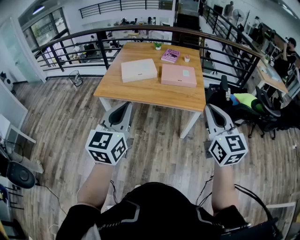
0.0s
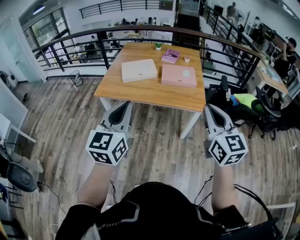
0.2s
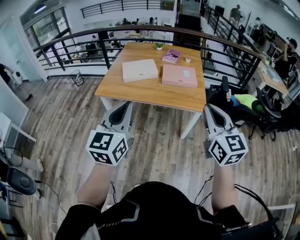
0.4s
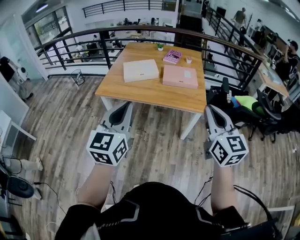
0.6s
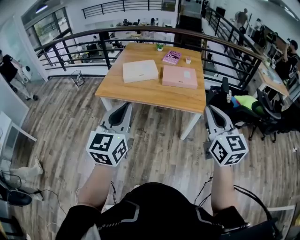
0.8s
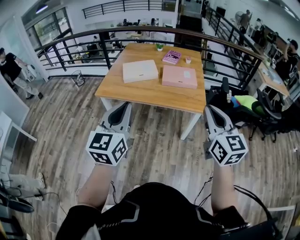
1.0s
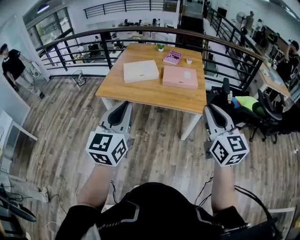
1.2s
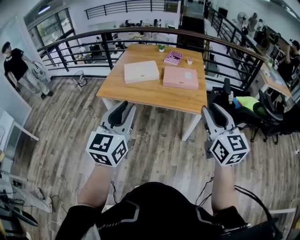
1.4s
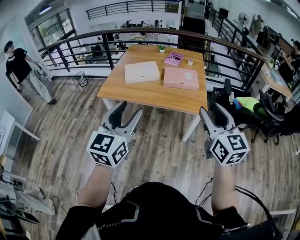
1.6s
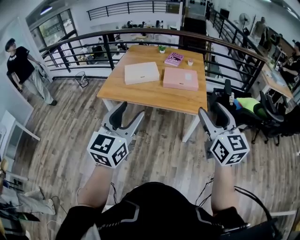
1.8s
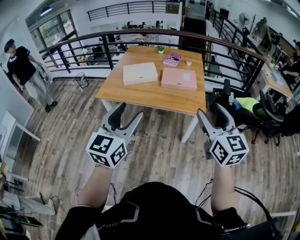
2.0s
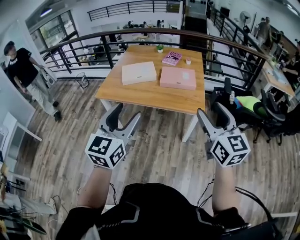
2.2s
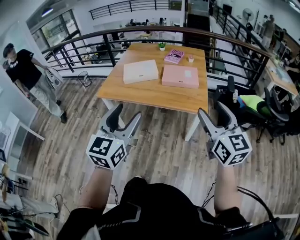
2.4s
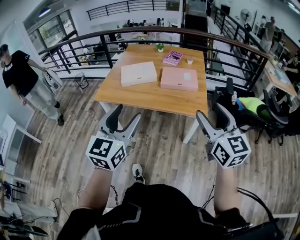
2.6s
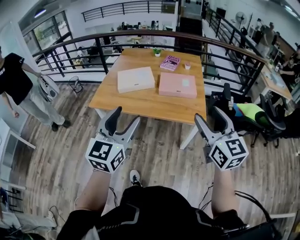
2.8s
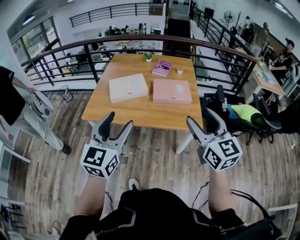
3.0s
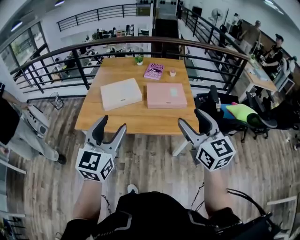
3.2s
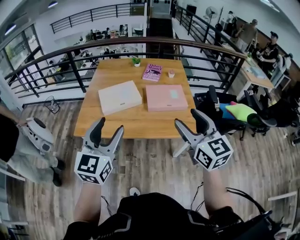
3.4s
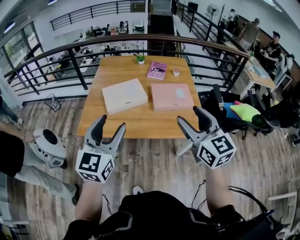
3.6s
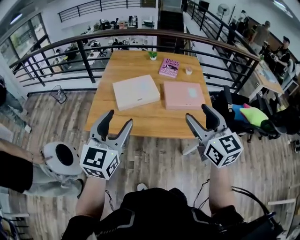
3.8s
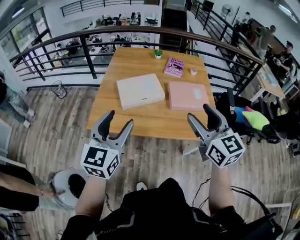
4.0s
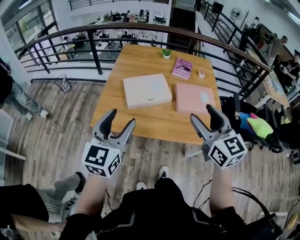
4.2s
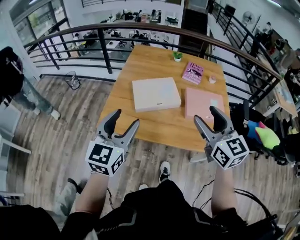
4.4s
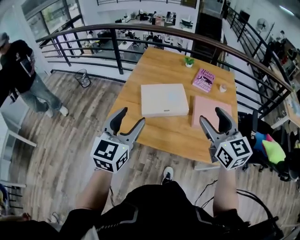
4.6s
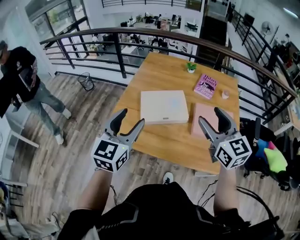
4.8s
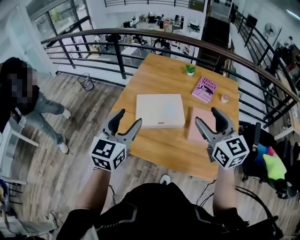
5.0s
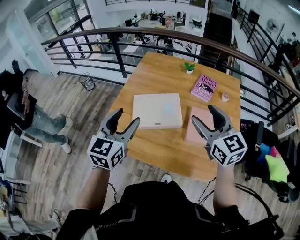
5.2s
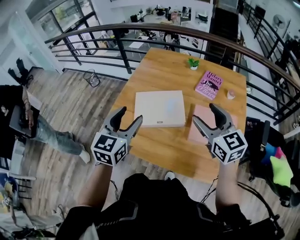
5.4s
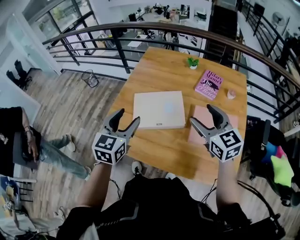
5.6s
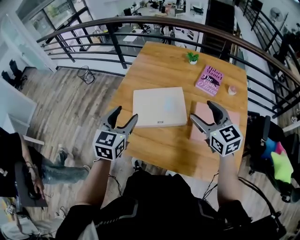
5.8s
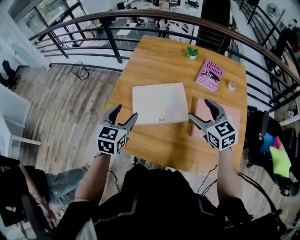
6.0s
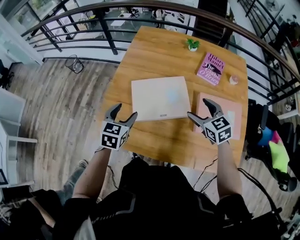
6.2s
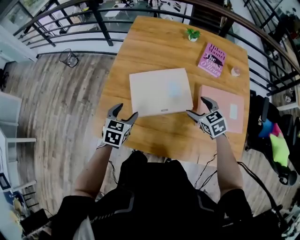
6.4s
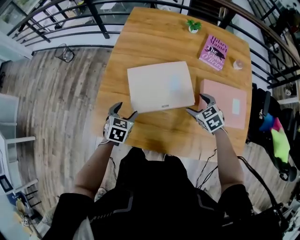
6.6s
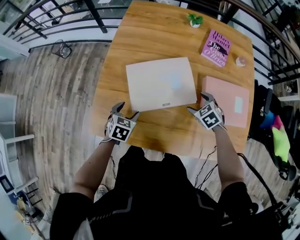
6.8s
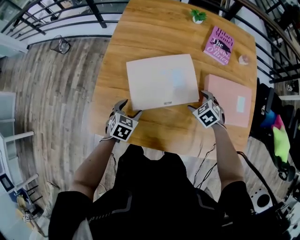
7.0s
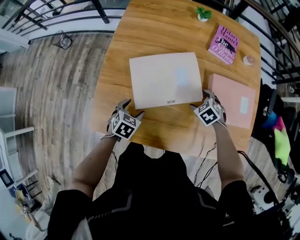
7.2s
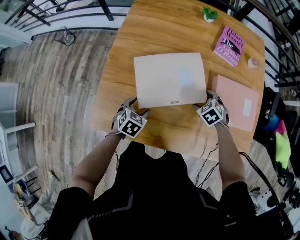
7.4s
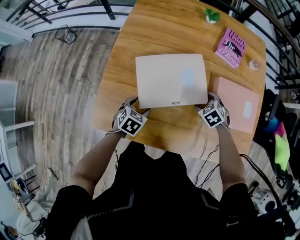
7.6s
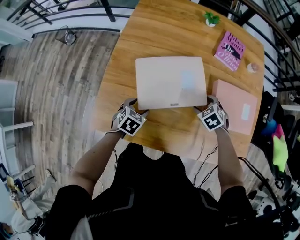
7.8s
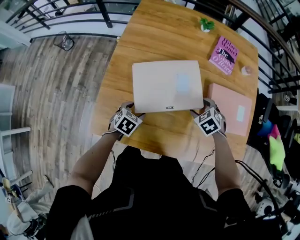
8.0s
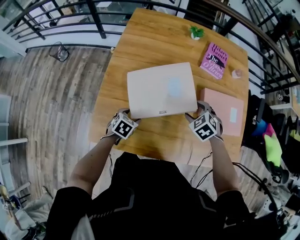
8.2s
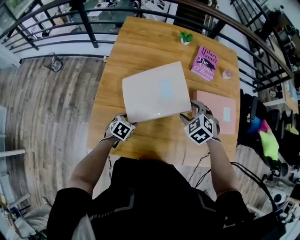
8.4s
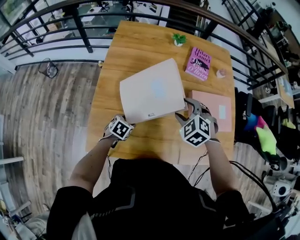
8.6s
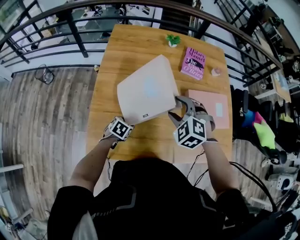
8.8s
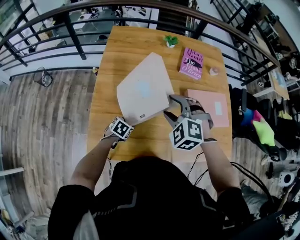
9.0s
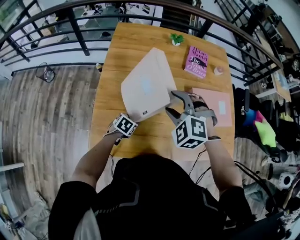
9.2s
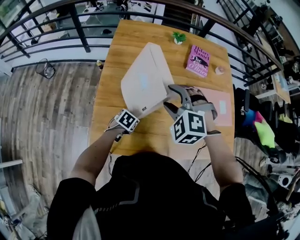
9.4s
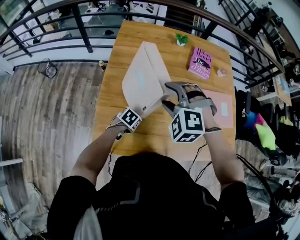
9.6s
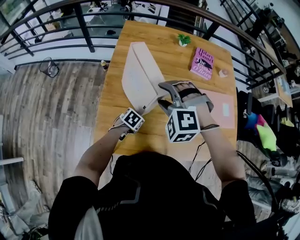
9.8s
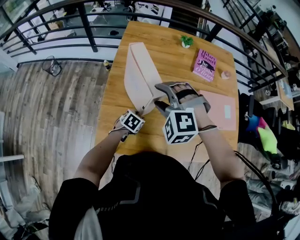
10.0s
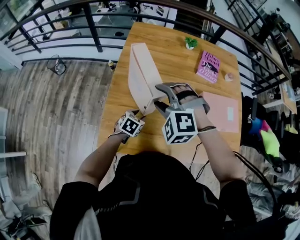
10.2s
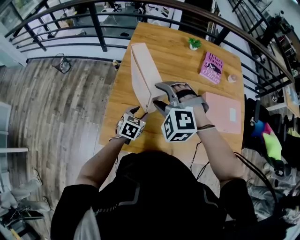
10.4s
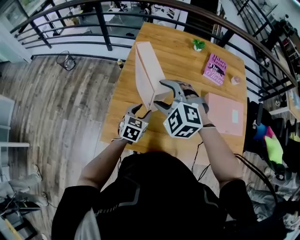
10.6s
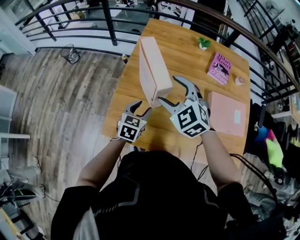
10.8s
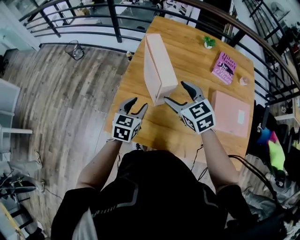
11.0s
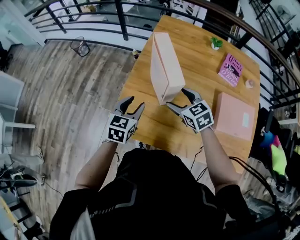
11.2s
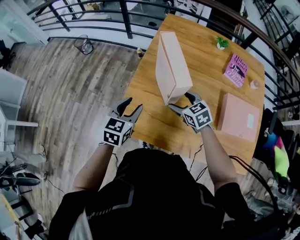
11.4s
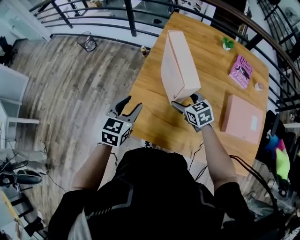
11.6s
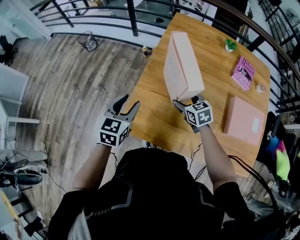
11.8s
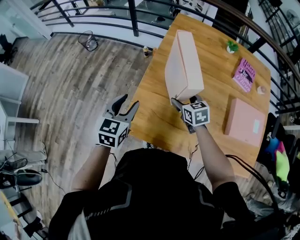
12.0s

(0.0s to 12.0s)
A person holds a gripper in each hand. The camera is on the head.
0.0s - 1.6s: The right gripper opens. Meanwhile the left gripper opens its fingers.
1.6s - 3.0s: The two grippers go about 15 cm forward.
3.0s - 4.4s: The left gripper heads to the left and forward, covering approximately 25 cm; the right gripper heads forward and to the left, covering approximately 30 cm.
4.4s - 6.0s: Both grippers move forward and downward, approximately 30 cm. The right gripper turns by about 20 degrees. The left gripper turns by approximately 20 degrees.
6.0s - 7.6s: The two grippers go approximately 25 cm downward. The left gripper angles its fingers downward, by some 30 degrees. Meanwhile the right gripper tips its fingers downward by some 50 degrees.
7.6s - 9.0s: The right gripper goes approximately 25 cm upward and to the left, and changes its angle by roughly 40 degrees.
9.0s - 10.4s: The left gripper moves upward, approximately 10 cm, and changes its angle by approximately 30 degrees. Meanwhile the right gripper moves about 15 cm, and changes its angle by approximately 20 degrees.
10.4s - 12.0s: The right gripper heads downward, covering approximately 15 cm, and rolls clockwise, seen from behind, by some 70 degrees, while the left gripper travels to the left and upward by about 20 cm, and changes its angle by approximately 20 degrees.

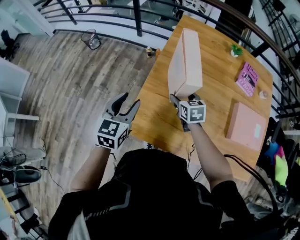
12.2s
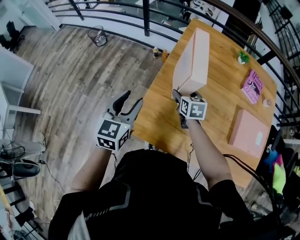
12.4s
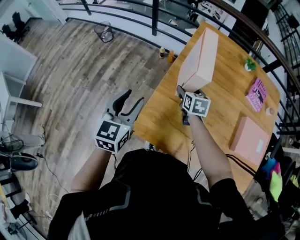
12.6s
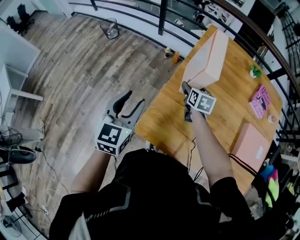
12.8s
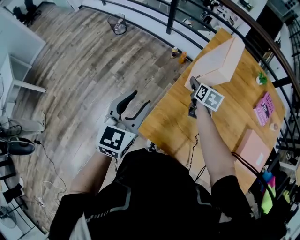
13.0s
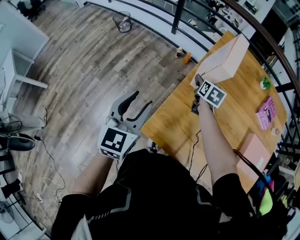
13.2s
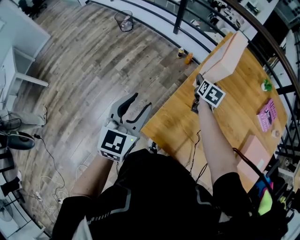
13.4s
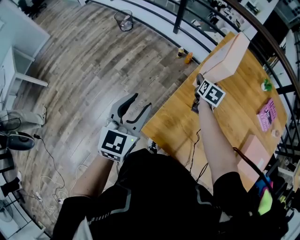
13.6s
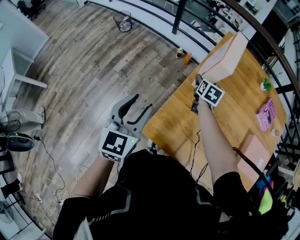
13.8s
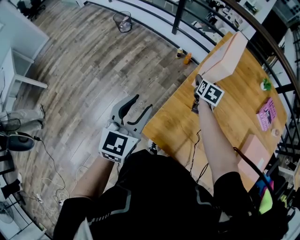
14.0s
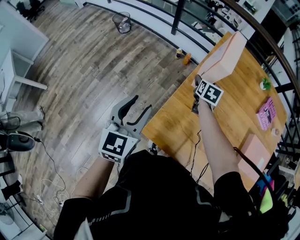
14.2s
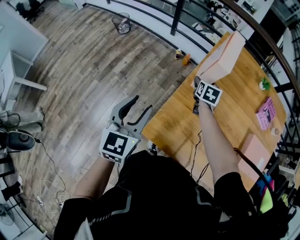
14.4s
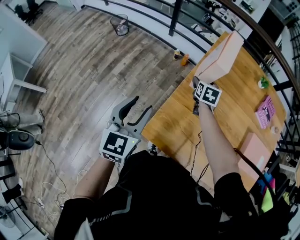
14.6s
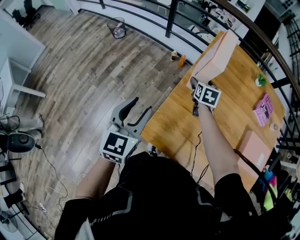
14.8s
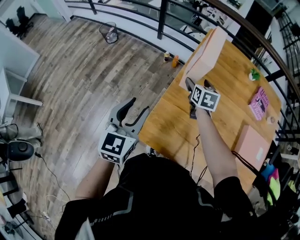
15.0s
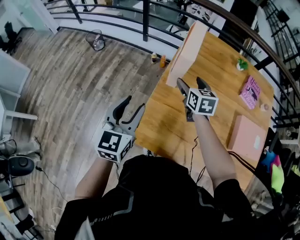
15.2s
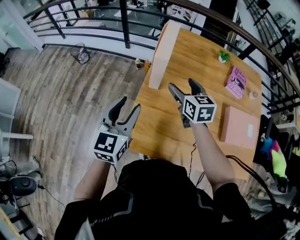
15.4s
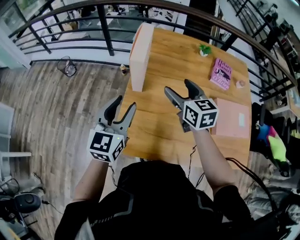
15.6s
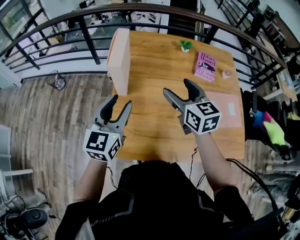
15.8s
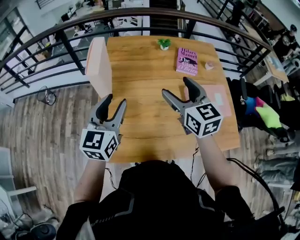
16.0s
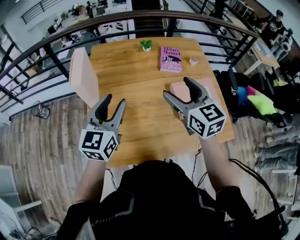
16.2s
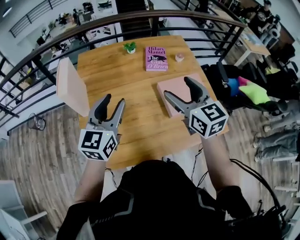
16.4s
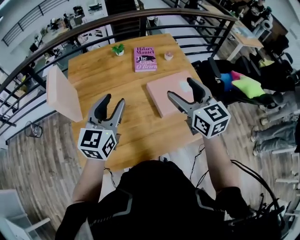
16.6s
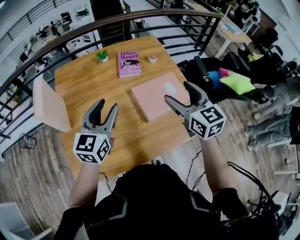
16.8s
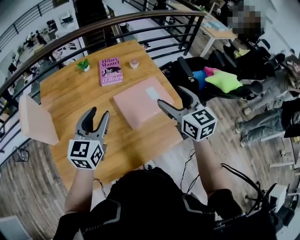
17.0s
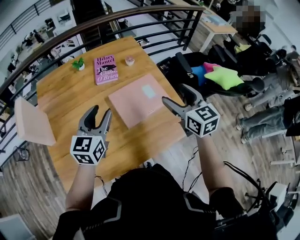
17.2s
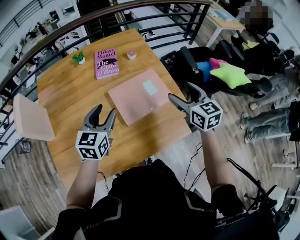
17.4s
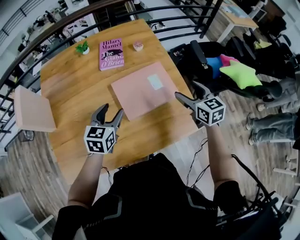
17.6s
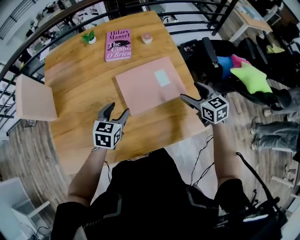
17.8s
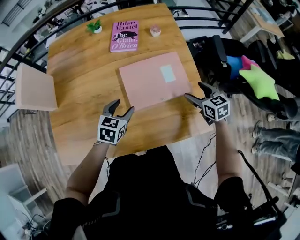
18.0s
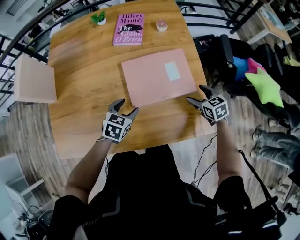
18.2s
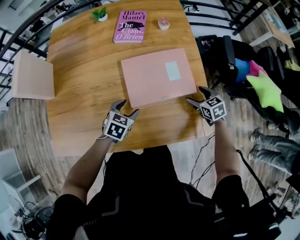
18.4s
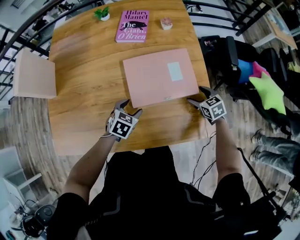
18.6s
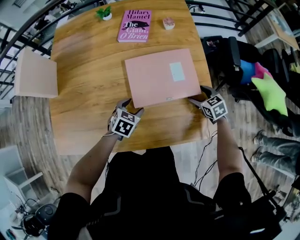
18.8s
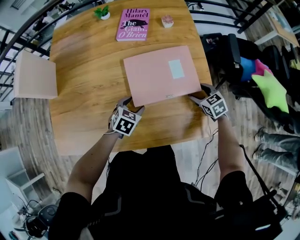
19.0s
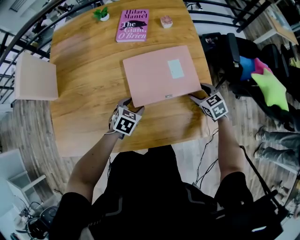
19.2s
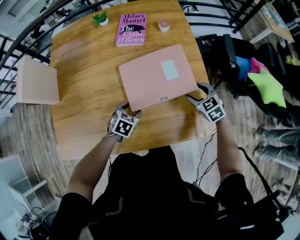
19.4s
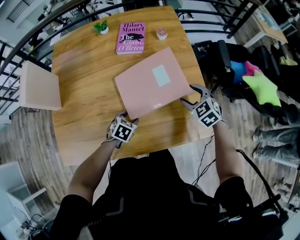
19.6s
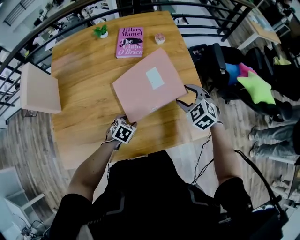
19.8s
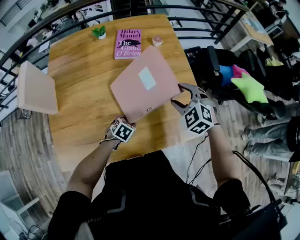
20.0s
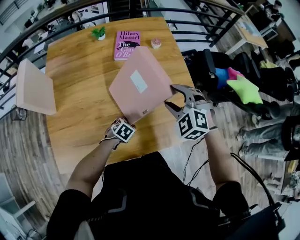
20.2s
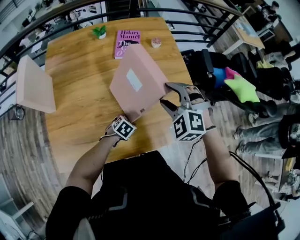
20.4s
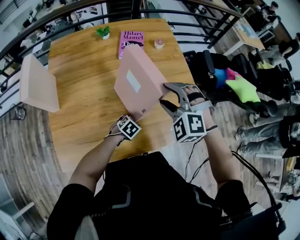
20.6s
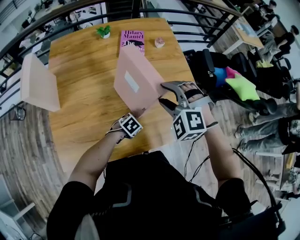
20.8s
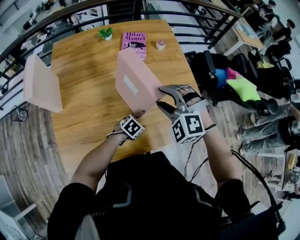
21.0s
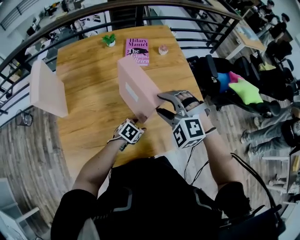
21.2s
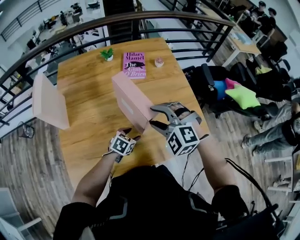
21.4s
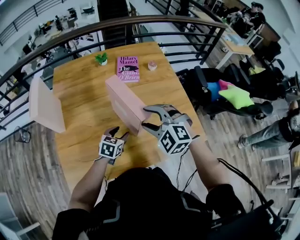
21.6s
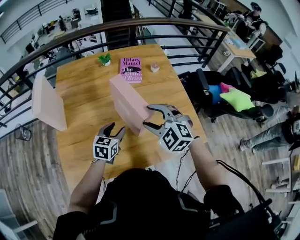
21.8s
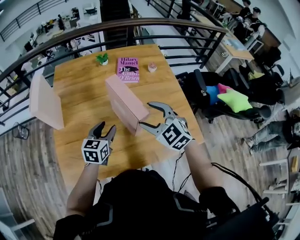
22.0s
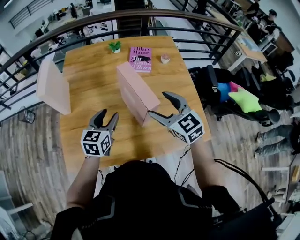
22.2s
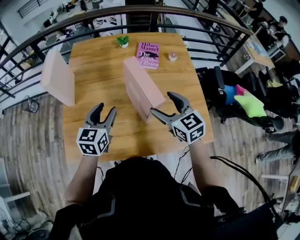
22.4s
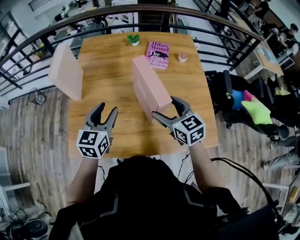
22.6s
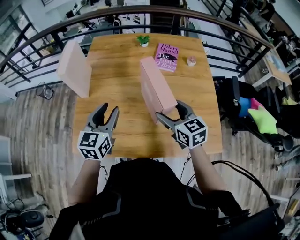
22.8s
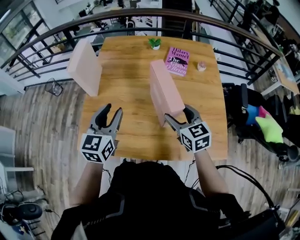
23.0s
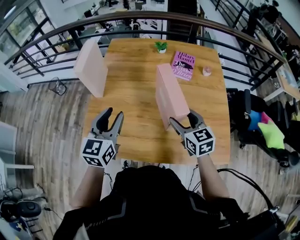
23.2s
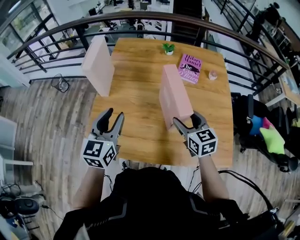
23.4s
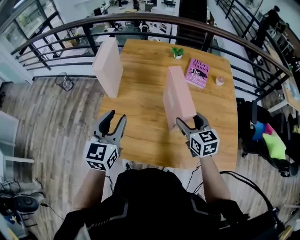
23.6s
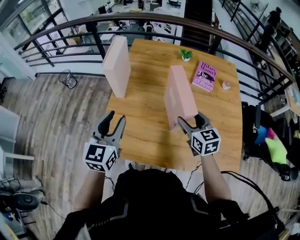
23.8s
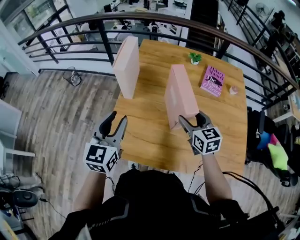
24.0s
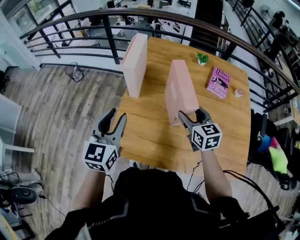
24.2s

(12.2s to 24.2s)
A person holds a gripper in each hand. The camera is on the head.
12.2s - 13.8s: The right gripper goes roughly 15 cm forward and to the left, while the left gripper is displaced to the left by roughly 10 cm.
13.8s - 15.2s: The right gripper moves upward and backward, about 10 cm. Meanwhile the left gripper moves to the right, roughly 5 cm.
15.2s - 16.6s: The left gripper moves roughly 40 cm, and rotates approximately 40 degrees. The right gripper shifts by some 50 cm, and changes its angle by about 30 degrees.
16.6s - 18.2s: The two grippers go about 40 cm downward and to the right. The right gripper points its fingers about 30 degrees further downward; the left gripper tilts its fingers about 40 degrees downward.
18.2s - 19.8s: The left gripper shifts roughly 5 cm downward; the right gripper shifts about 15 cm upward and to the left, and turns by approximately 30 degrees.
19.8s - 21.2s: The right gripper shifts approximately 25 cm to the left, backward and upward, and changes its angle by approximately 30 degrees.
21.2s - 22.6s: The right gripper twists approximately 60 degrees clockwise, seen from behind, and opens its fingers. Meanwhile the left gripper travels upward by roughly 25 cm, and tilts its fingers about 40 degrees upward.
22.6s - 24.2s: The left gripper heads to the left, covering roughly 25 cm; the right gripper travels to the left and forward by some 20 cm.
